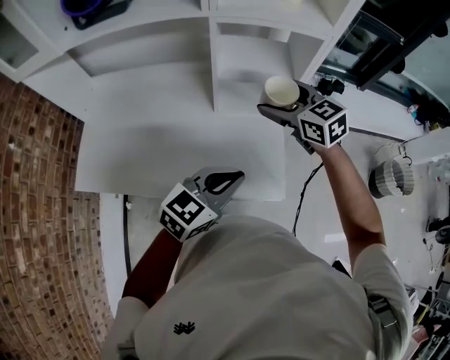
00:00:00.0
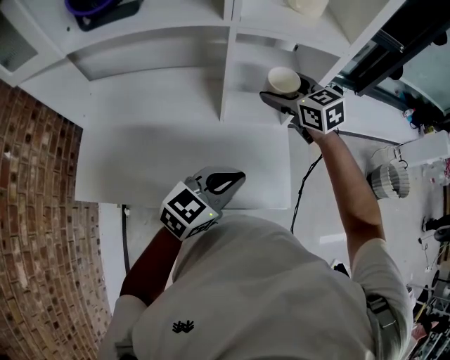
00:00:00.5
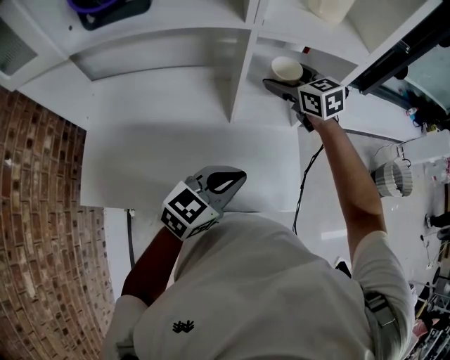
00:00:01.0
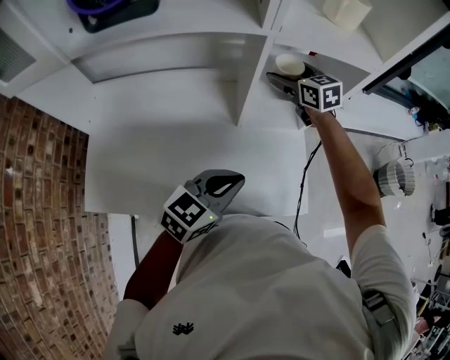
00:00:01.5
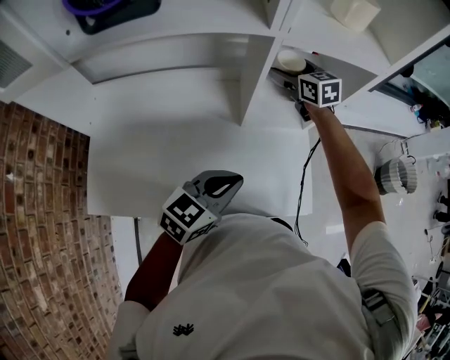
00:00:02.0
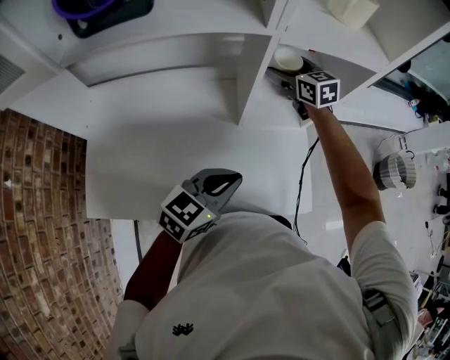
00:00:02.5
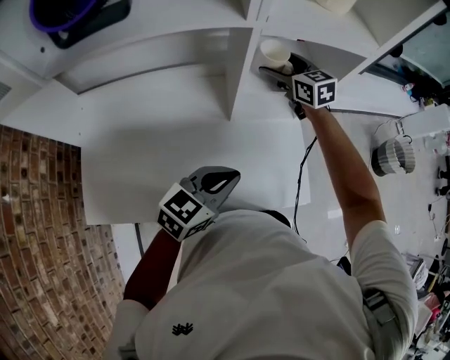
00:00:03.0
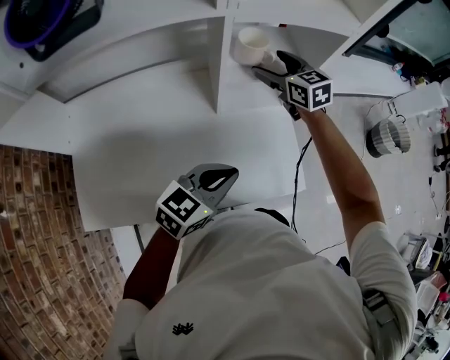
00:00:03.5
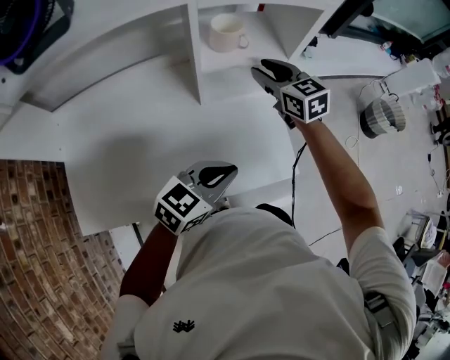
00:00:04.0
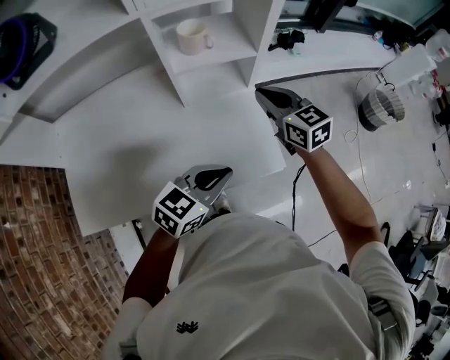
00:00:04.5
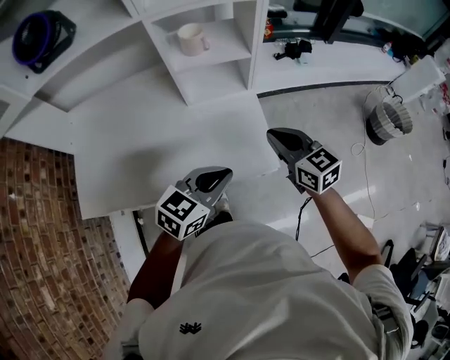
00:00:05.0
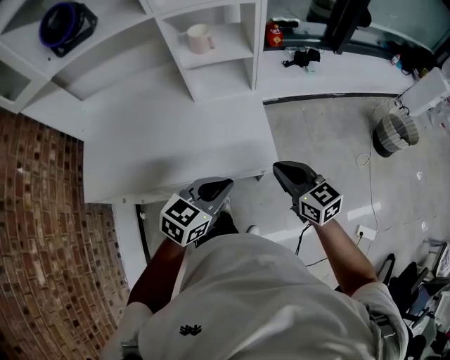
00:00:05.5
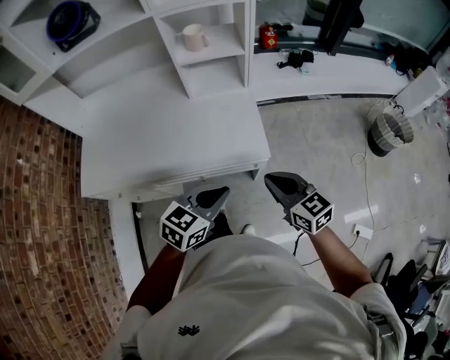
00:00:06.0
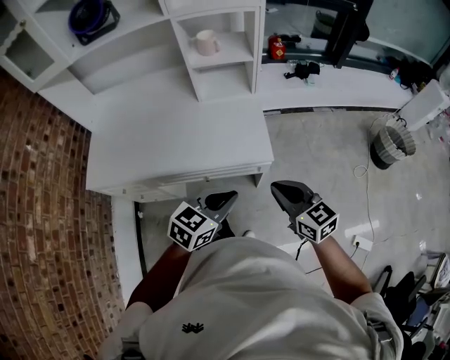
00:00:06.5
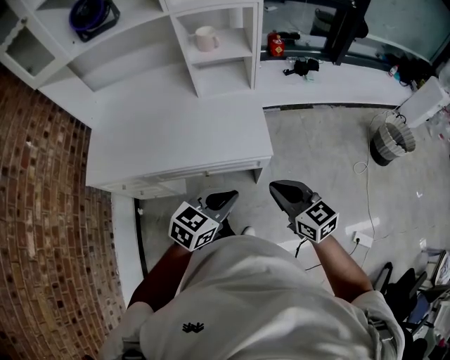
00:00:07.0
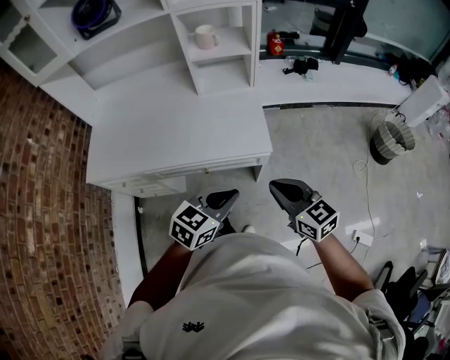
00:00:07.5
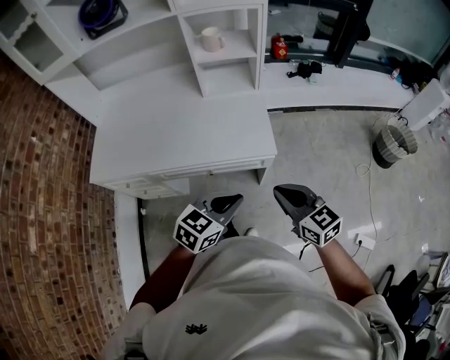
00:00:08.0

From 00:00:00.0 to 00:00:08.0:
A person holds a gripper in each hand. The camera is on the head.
From 00:00:00.0 to 00:00:02.0: The left gripper goes some 15 cm to the left and forward. Meanwhile the right gripper moves forward and to the left, about 25 cm.
From 00:00:02.0 to 00:00:04.0: The right gripper is displaced to the right and backward by about 15 cm, and closes its fingers. Meanwhile the left gripper goes roughly 10 cm to the right.
From 00:00:04.0 to 00:00:06.0: The right gripper moves backward and to the right, some 50 cm; the left gripper heads backward and to the right, covering approximately 25 cm.
From 00:00:06.0 to 00:00:08.0: Both grippers travel together backward, some 10 cm.

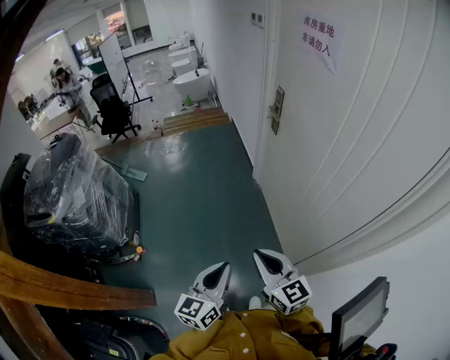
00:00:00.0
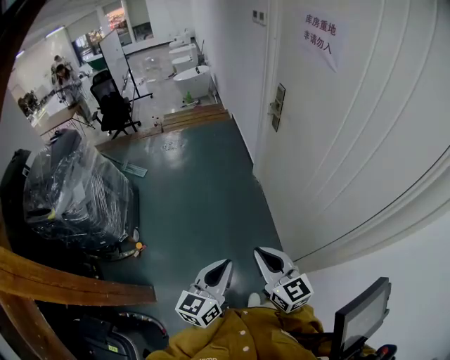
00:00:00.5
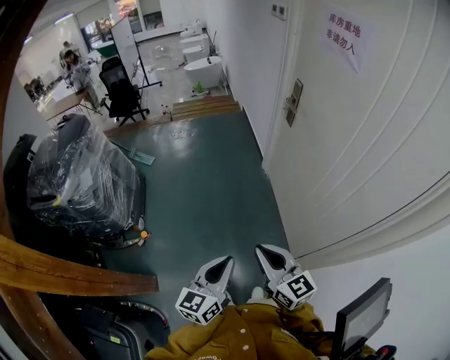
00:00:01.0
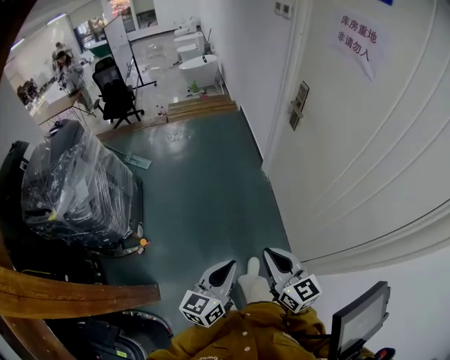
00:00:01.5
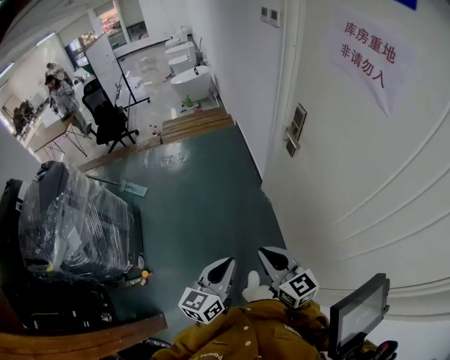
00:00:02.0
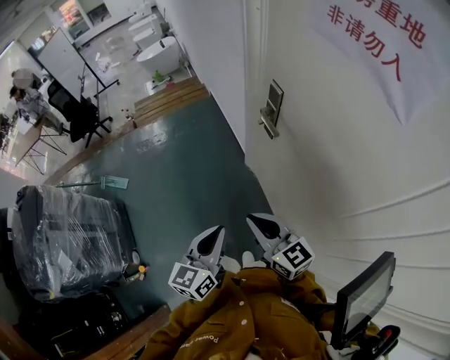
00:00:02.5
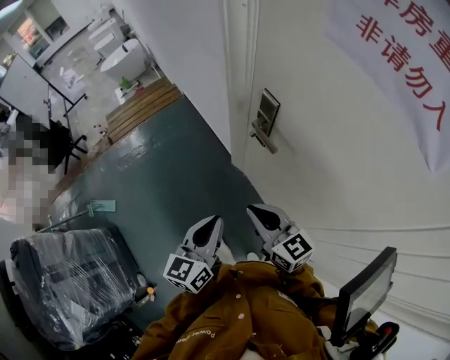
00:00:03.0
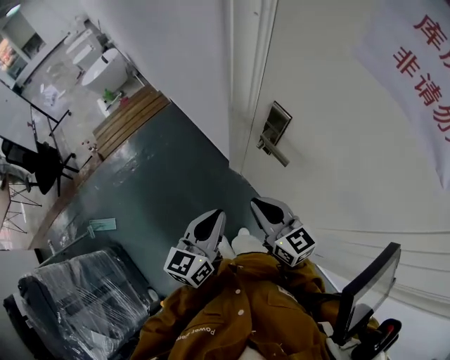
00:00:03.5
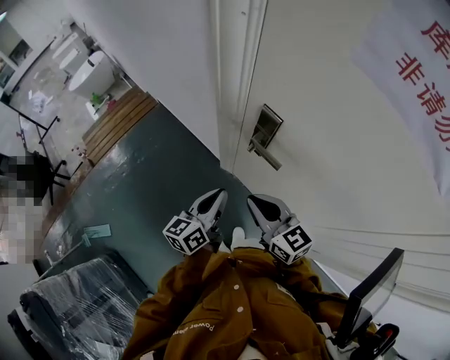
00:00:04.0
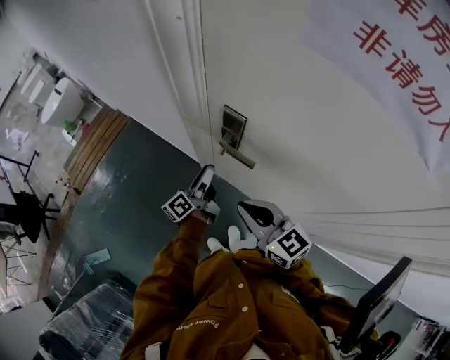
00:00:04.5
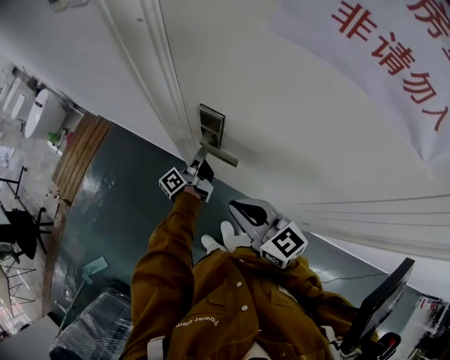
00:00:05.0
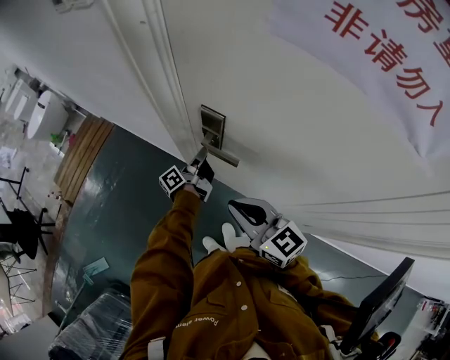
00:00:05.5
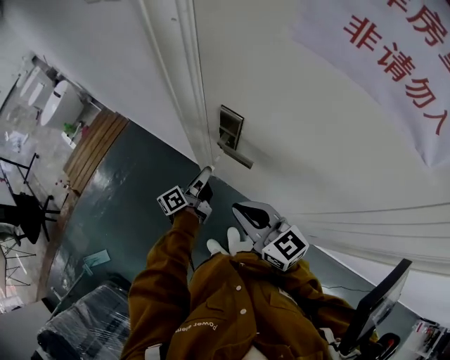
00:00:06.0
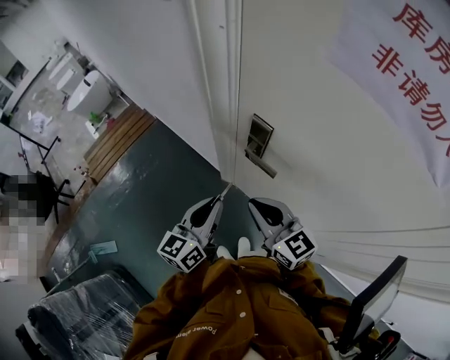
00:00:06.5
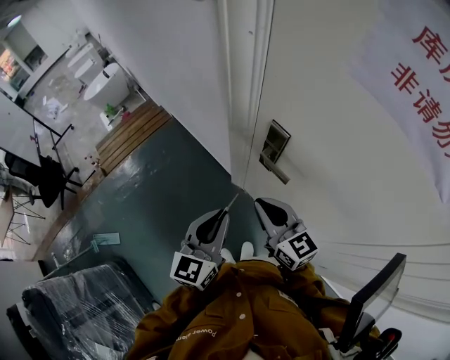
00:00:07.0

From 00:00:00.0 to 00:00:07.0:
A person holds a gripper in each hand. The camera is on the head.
From 00:00:00.0 to 00:00:02.0: The two grippers go about 25 cm forward.
From 00:00:02.0 to 00:00:03.5: The two grippers travel together, forward, about 40 cm. The left gripper changes its angle by some 20 degrees. The right gripper rotates some 20 degrees.
From 00:00:03.5 to 00:00:05.0: The left gripper moves forward, downward and to the right, approximately 35 cm, twists some 60 degrees counterclockwise, seen from behind, and opens its fingers. Meanwhile the right gripper travels to the right by about 5 cm.
From 00:00:05.0 to 00:00:07.0: The left gripper is displaced backward, upward and to the left by approximately 30 cm, and rolls clockwise, seen from behind, by roughly 80 degrees. Meanwhile the right gripper changes place by about 5 cm.

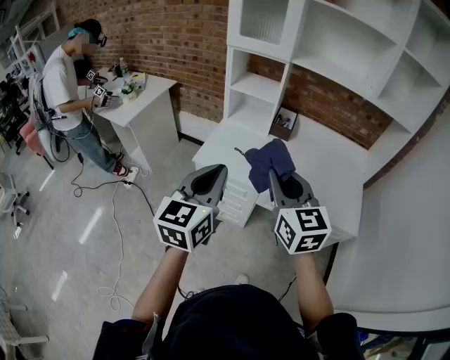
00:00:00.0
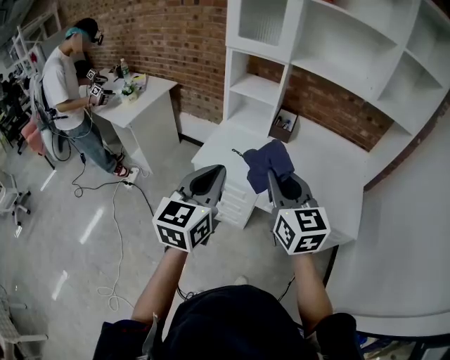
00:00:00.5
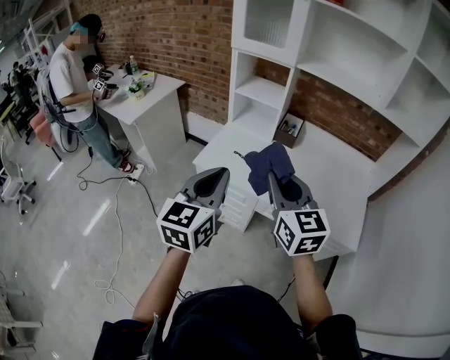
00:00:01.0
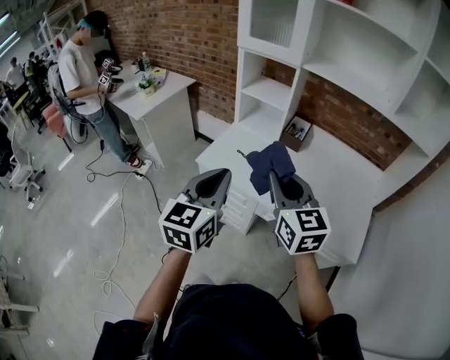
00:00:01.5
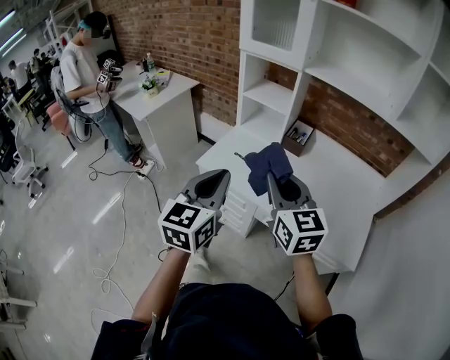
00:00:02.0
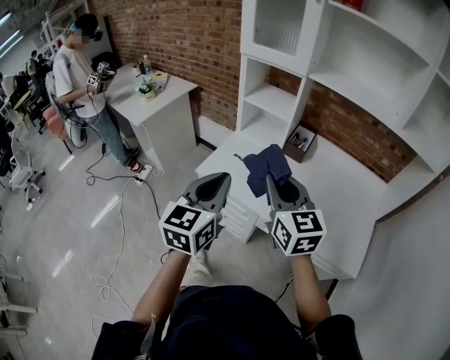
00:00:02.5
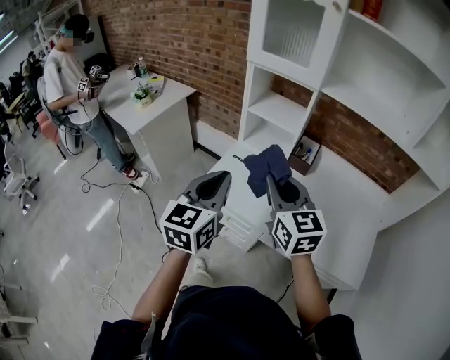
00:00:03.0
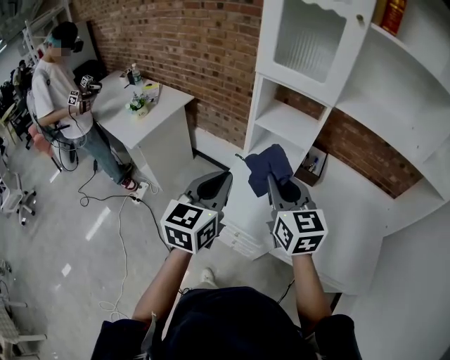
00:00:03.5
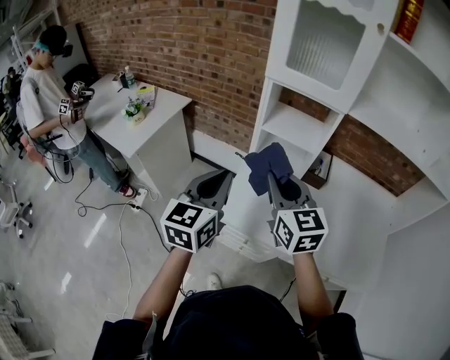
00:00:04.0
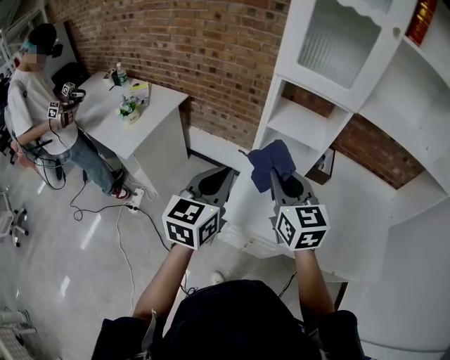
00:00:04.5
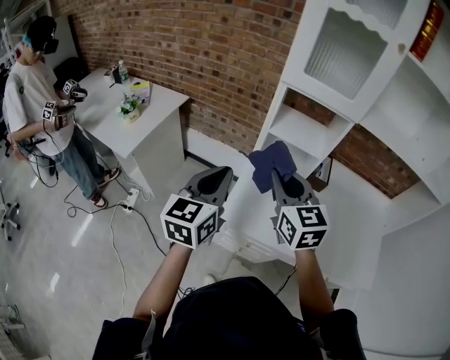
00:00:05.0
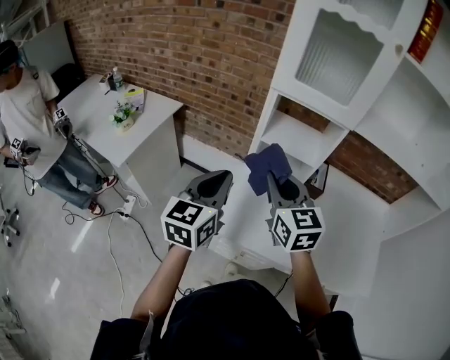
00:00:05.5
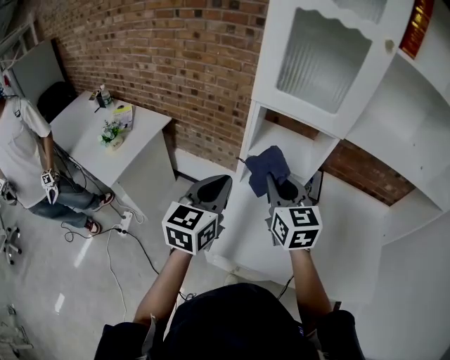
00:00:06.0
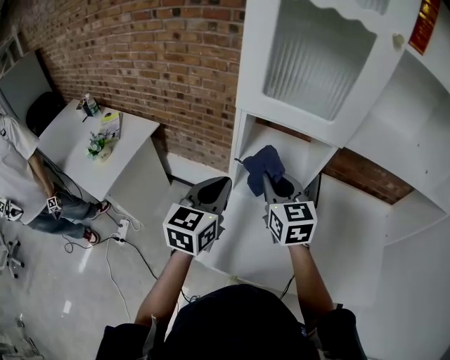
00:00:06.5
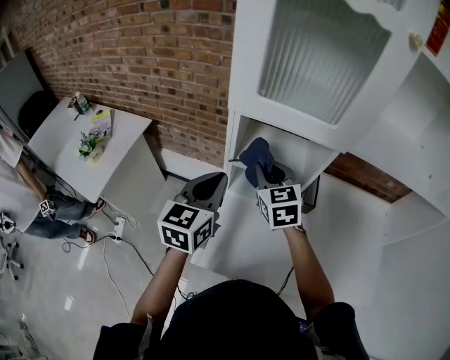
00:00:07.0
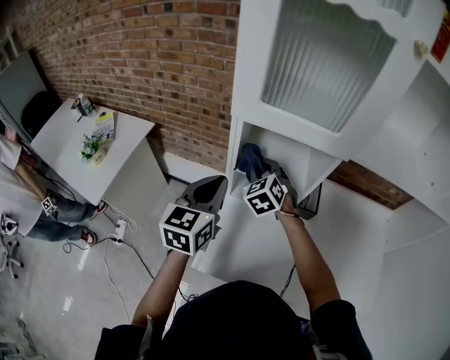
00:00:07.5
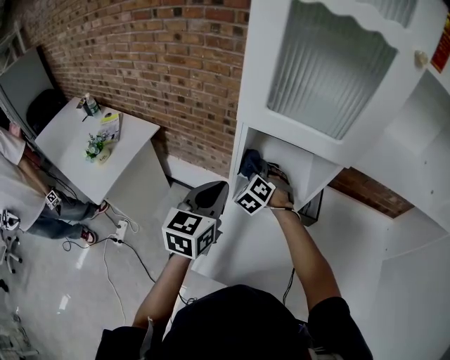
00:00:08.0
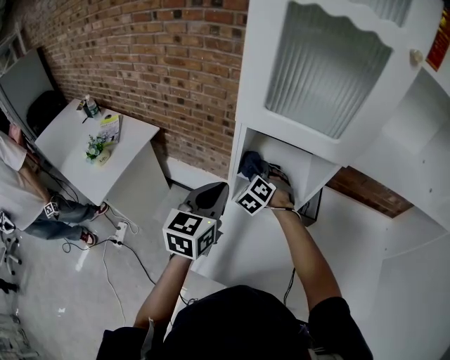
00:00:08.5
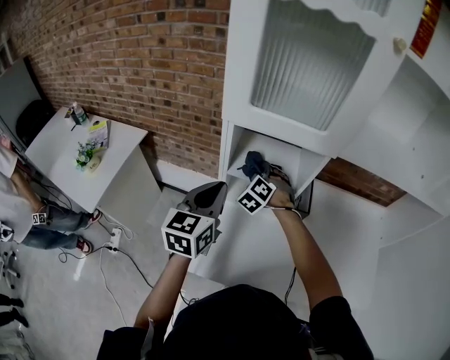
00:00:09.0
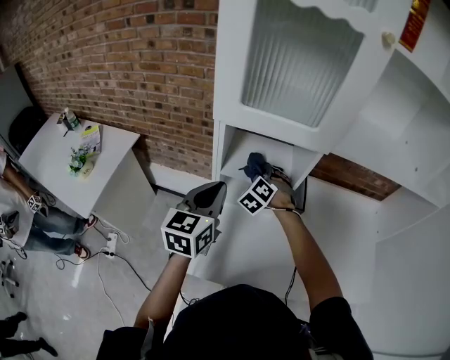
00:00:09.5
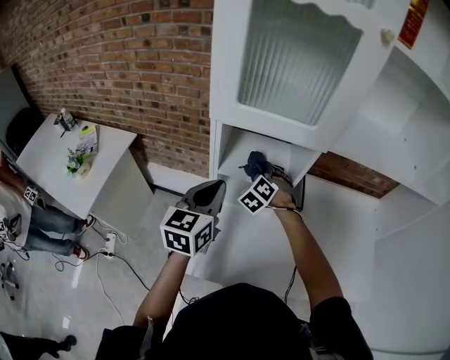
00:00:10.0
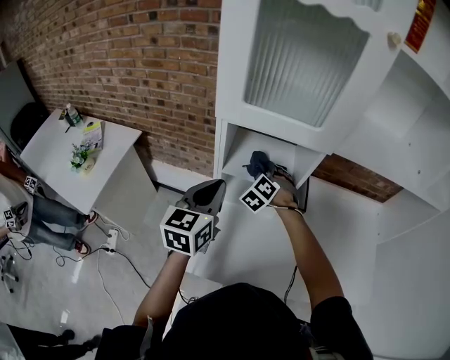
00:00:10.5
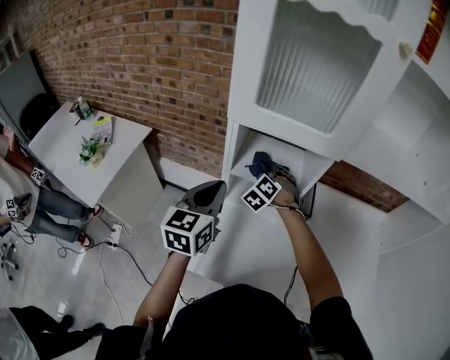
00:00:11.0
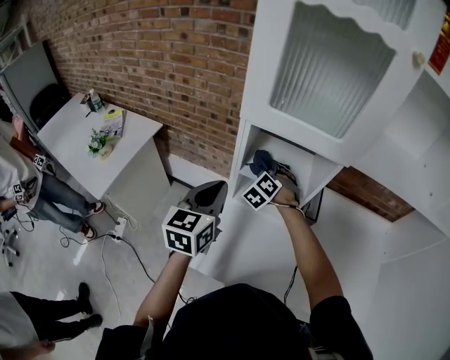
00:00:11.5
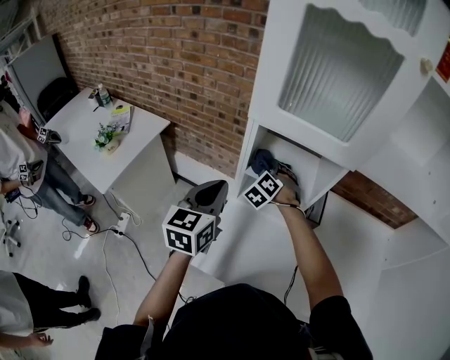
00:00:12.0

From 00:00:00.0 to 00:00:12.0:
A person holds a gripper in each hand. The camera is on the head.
From 00:00:00.0 to 00:00:02.0: The left gripper shifts approximately 5 cm to the right. The right gripper travels forward and to the right by about 10 cm.
From 00:00:02.0 to 00:00:04.0: The grippers both shift forward and to the left by roughly 30 cm.
From 00:00:04.0 to 00:00:06.0: Both grippers travel together forward, approximately 15 cm.
From 00:00:06.0 to 00:00:08.0: The right gripper heads forward and downward, covering approximately 30 cm, and rolls counterclockwise, seen from behind, by roughly 50 degrees. The left gripper heads forward, covering some 10 cm.
From 00:00:08.0 to 00:00:10.0: The right gripper heads to the right, covering some 10 cm.
From 00:00:10.0 to 00:00:12.0: Both grippers travel together to the left, roughly 5 cm.
